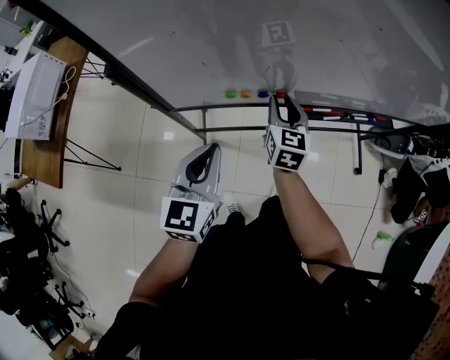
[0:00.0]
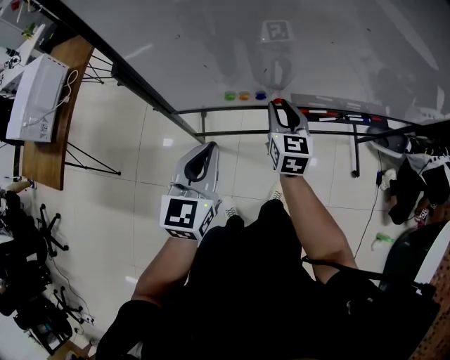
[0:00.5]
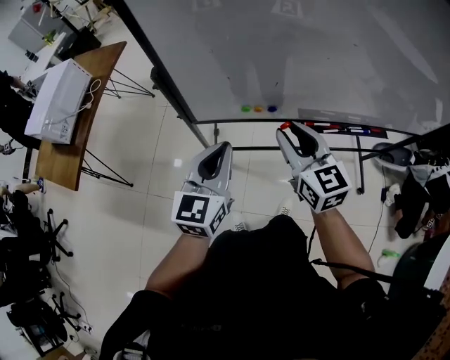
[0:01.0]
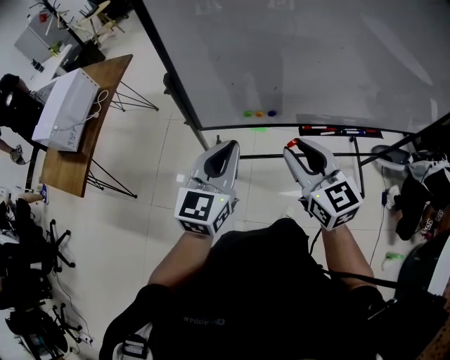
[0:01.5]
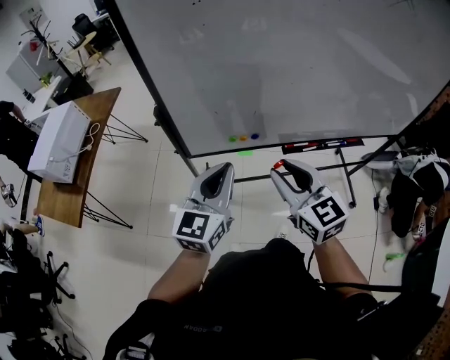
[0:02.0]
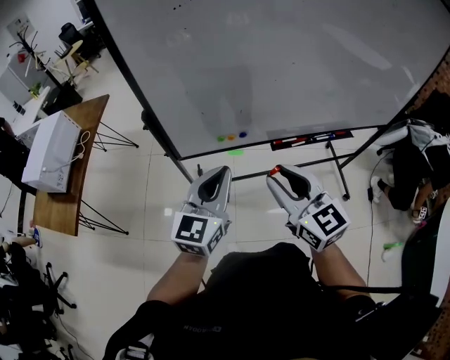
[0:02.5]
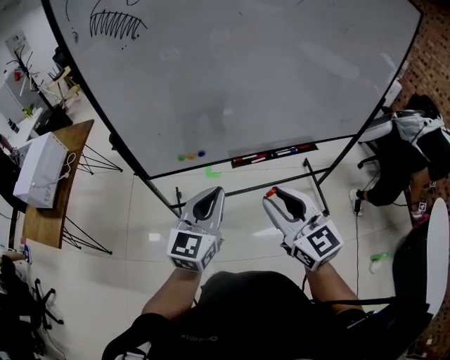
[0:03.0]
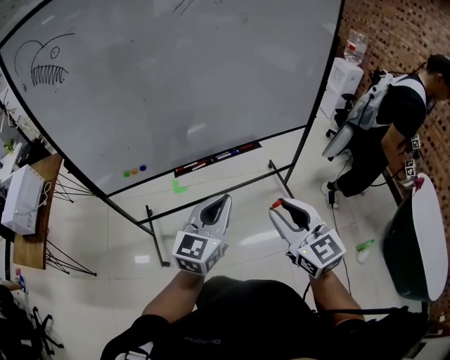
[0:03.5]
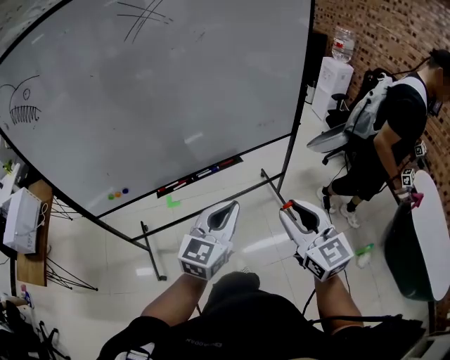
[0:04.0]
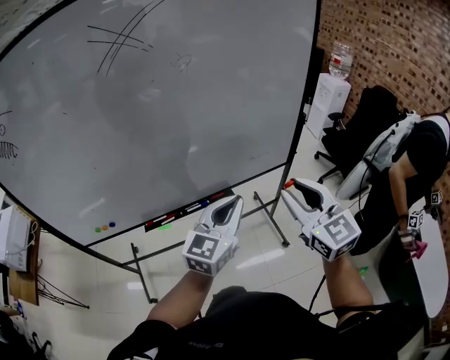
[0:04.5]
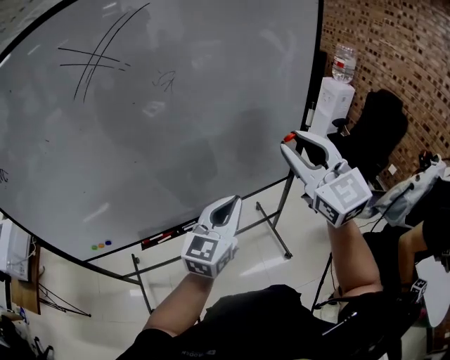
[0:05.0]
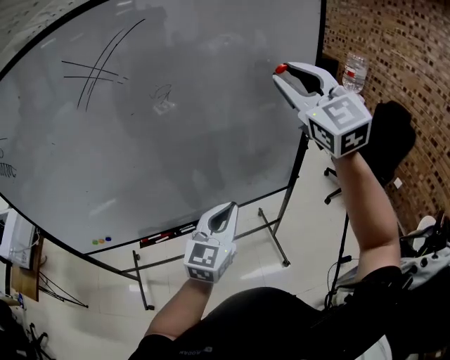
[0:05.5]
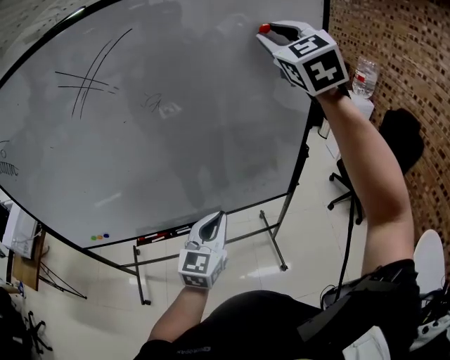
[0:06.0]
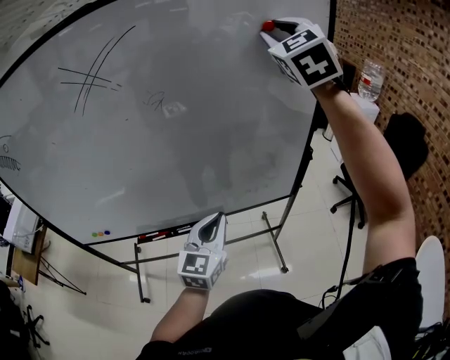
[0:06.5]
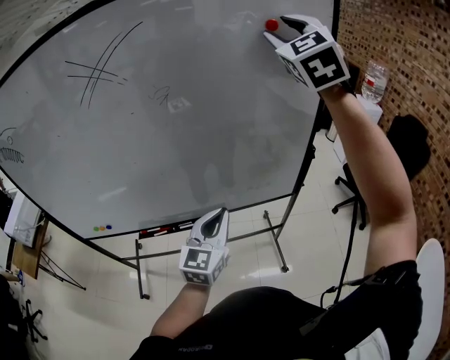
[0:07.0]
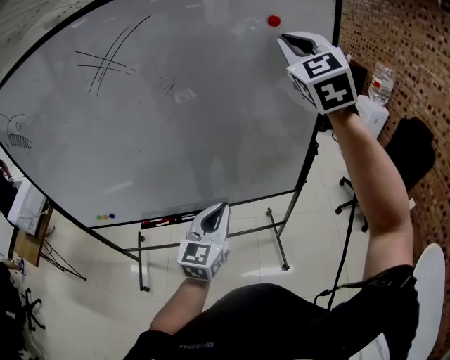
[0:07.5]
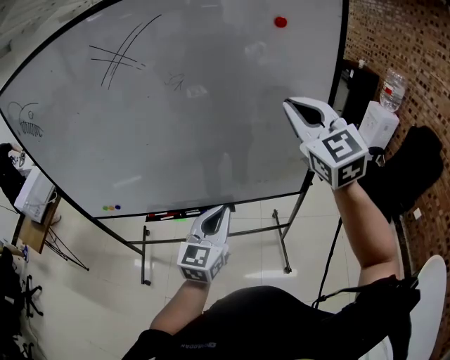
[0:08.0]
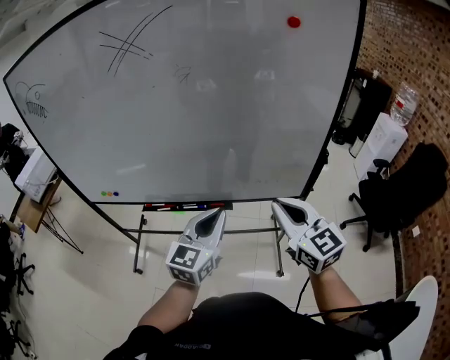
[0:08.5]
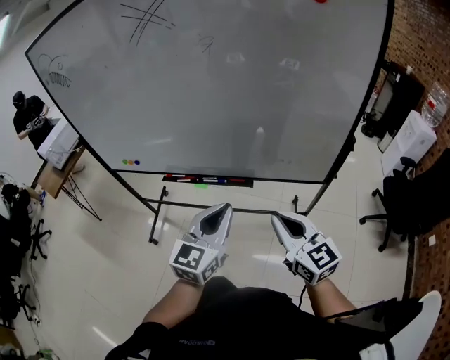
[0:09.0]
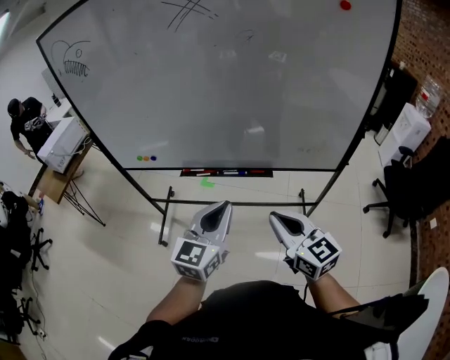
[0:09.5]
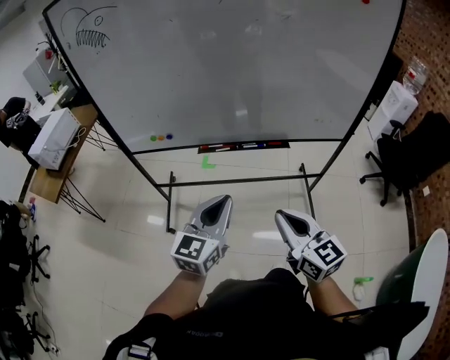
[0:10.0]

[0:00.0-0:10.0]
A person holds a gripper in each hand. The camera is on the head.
0.0 to 2.0 s: The left gripper is displaced upward by about 15 cm. The right gripper is displaced backward and upward by some 30 cm, and changes its angle by roughly 30 degrees.
2.0 to 4.0 s: The two grippers travel together, to the right, about 50 cm. The right gripper turns by approximately 20 degrees. The left gripper turns by roughly 20 degrees.
4.0 to 6.0 s: The right gripper moves forward and upward, about 60 cm, and turns by some 40 degrees; the left gripper is displaced forward by approximately 25 cm.
6.0 to 8.0 s: The right gripper heads downward and backward, covering roughly 20 cm, turns by approximately 20 degrees, and closes up.
8.0 to 10.0 s: The right gripper shifts roughly 50 cm to the left, backward and downward, and swivels some 40 degrees. The left gripper moves to the left and backward, about 35 cm.

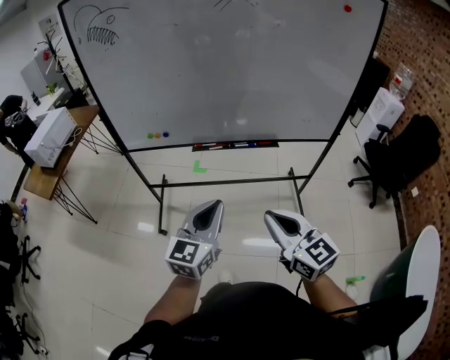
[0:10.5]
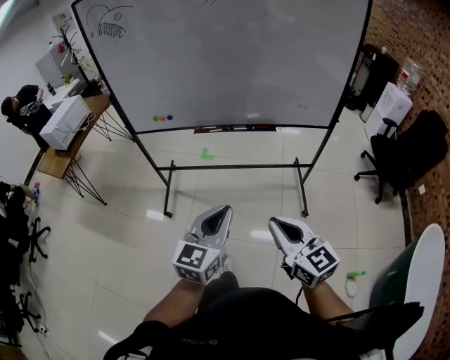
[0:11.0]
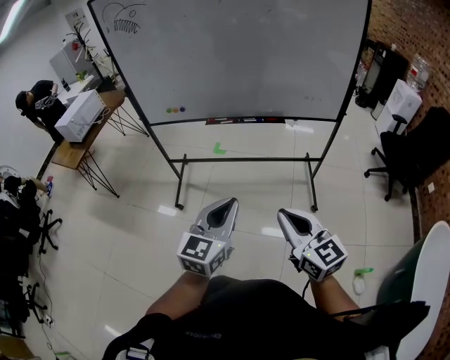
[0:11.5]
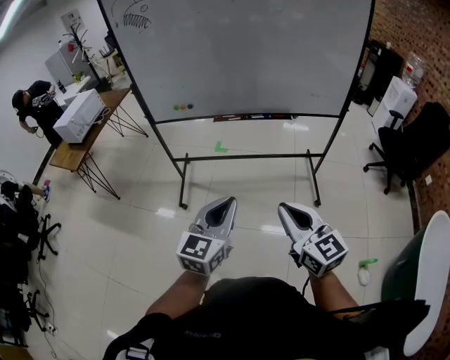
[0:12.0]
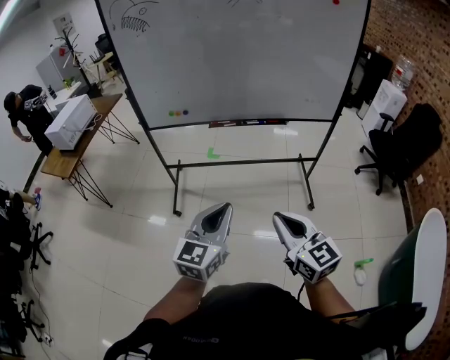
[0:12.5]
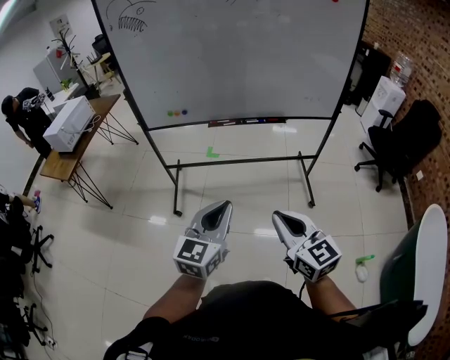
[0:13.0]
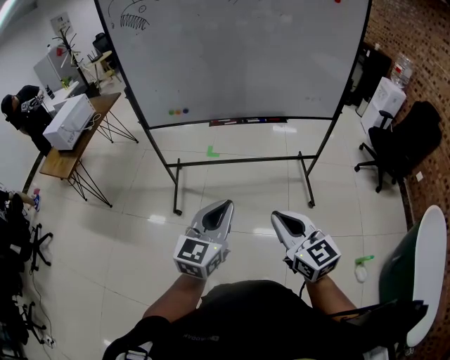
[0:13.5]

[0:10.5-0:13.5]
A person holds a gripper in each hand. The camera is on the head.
10.5 to 12.0 s: The two grippers go about 15 cm backward.
12.0 to 13.5 s: The grippers move only a little.

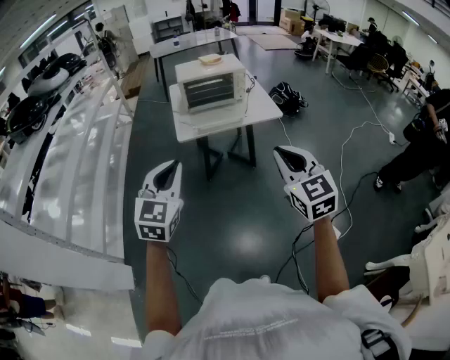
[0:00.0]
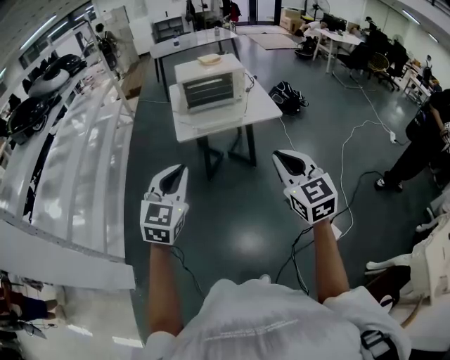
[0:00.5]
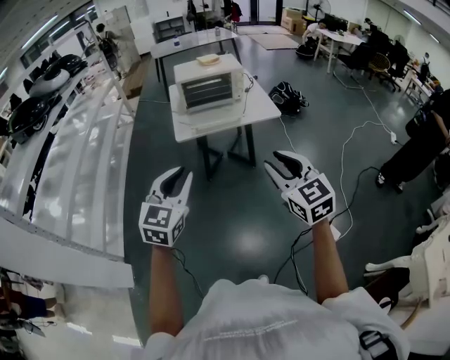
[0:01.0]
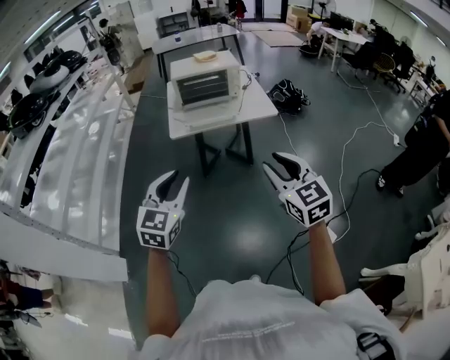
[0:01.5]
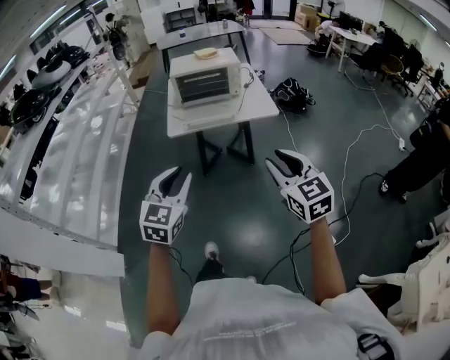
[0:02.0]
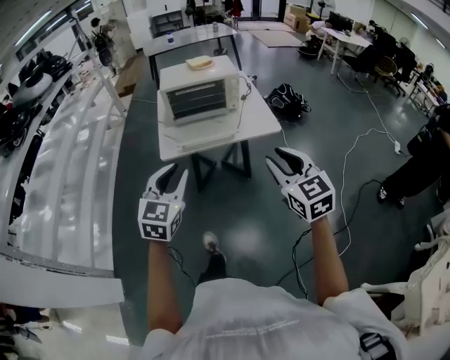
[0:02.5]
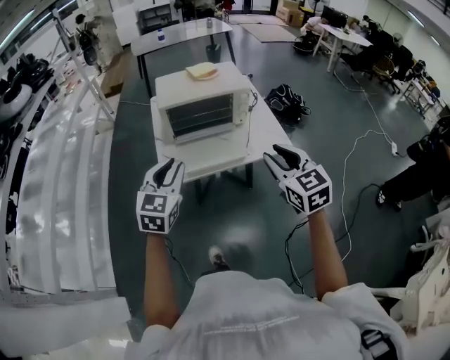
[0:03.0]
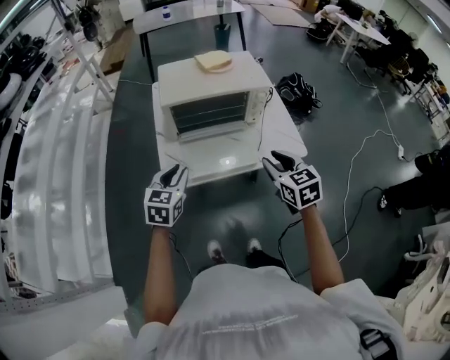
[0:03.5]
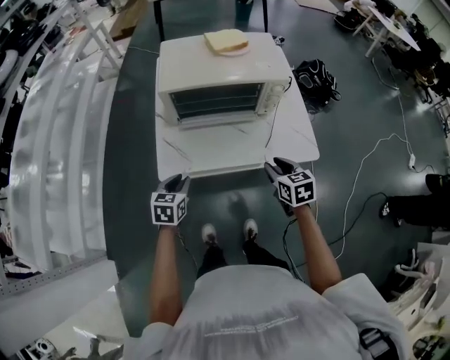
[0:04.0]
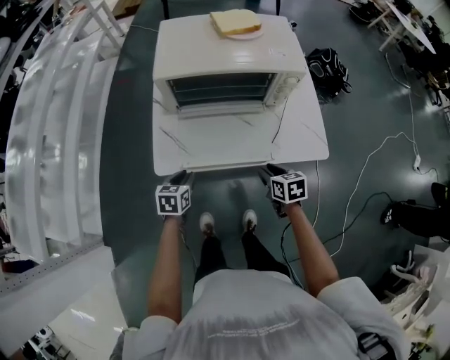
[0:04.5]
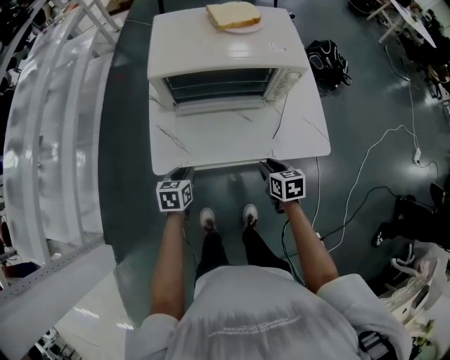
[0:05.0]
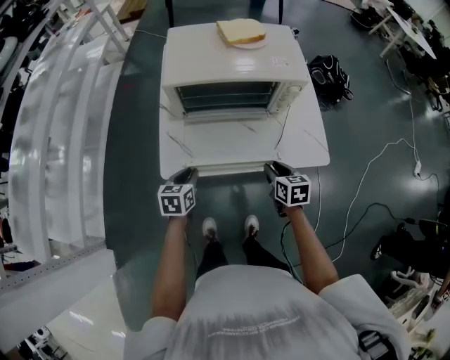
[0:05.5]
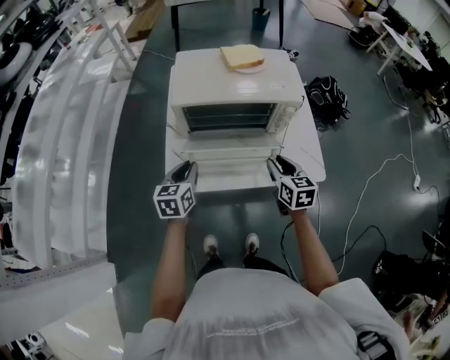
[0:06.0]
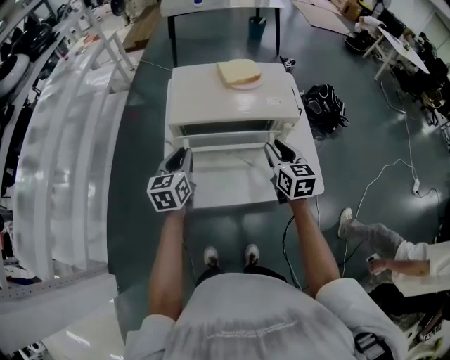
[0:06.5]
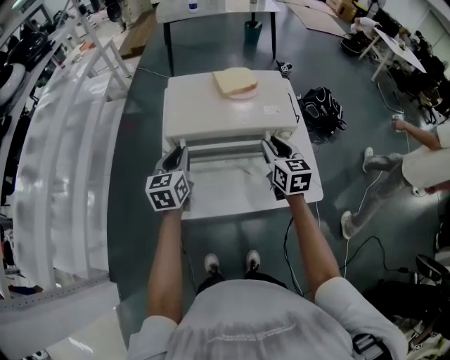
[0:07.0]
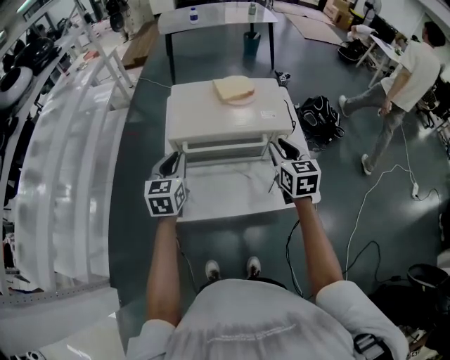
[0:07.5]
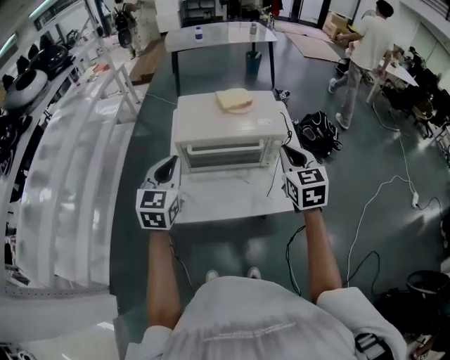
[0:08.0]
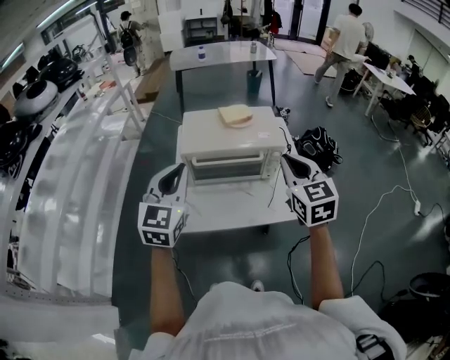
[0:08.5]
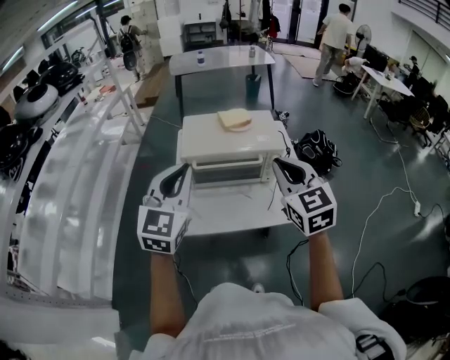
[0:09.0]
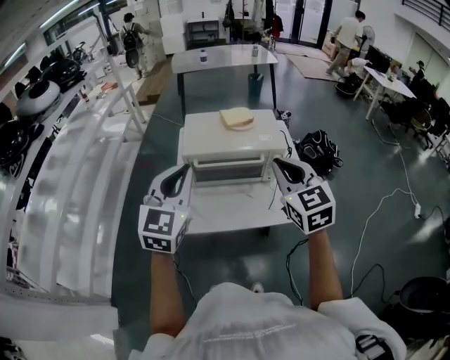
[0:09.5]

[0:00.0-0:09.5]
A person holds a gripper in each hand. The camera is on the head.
0.0 to 2.0 s: Both grippers travel together to the right and downward, some 10 cm. The right gripper opens its fingers. The left gripper opens its fingers.
2.0 to 4.0 s: The pair of grippers is taken forward, some 50 cm. The two grippers go some 25 cm downward. The left gripper changes its angle by about 40 degrees, while the right gripper changes its angle by about 30 degrees.
4.0 to 5.5 s: The right gripper goes some 10 cm downward.
5.5 to 7.5 s: The two grippers go some 25 cm upward and forward. The right gripper changes its angle by some 30 degrees; the left gripper swivels some 30 degrees.
7.5 to 9.5 s: The two grippers go approximately 25 cm upward and backward. The right gripper turns by roughly 20 degrees, and closes. Meanwhile the left gripper turns by roughly 30 degrees.

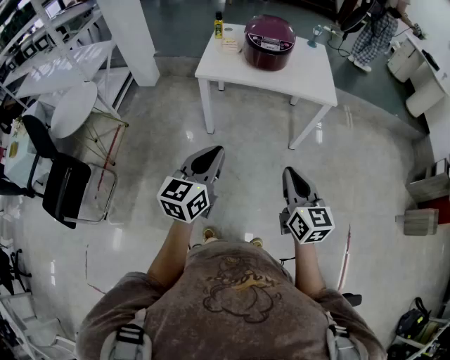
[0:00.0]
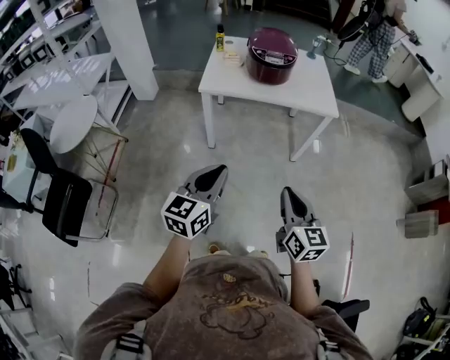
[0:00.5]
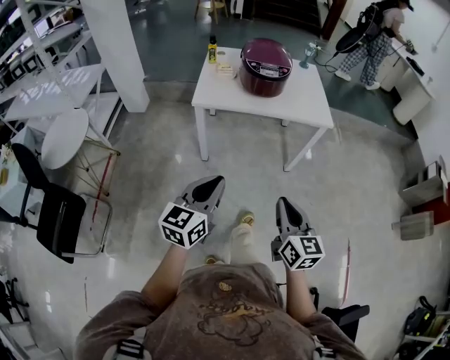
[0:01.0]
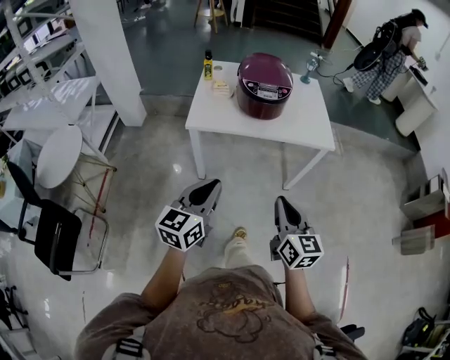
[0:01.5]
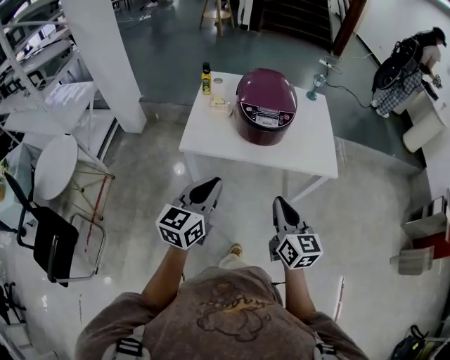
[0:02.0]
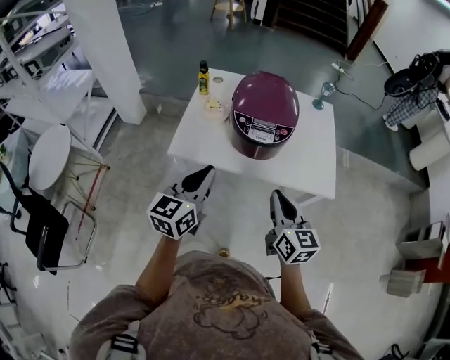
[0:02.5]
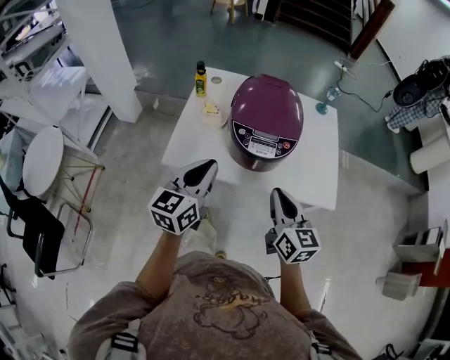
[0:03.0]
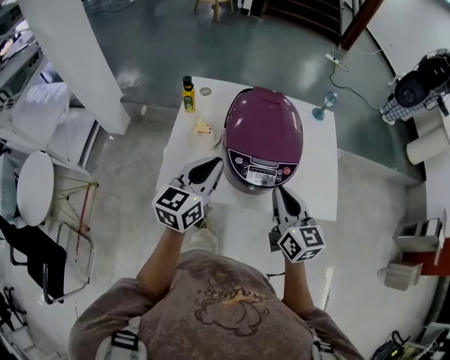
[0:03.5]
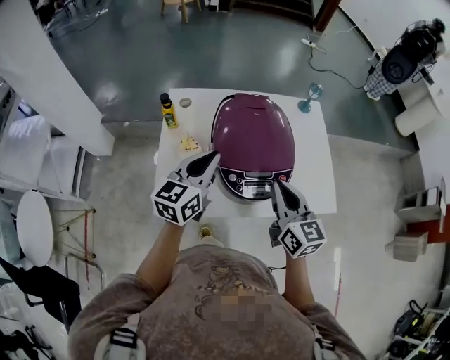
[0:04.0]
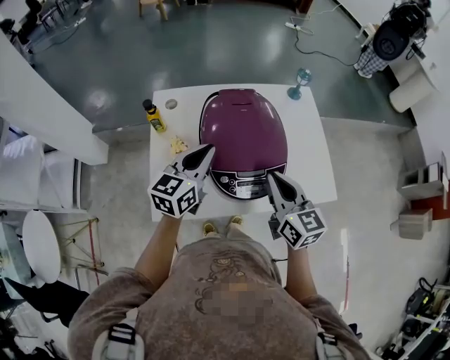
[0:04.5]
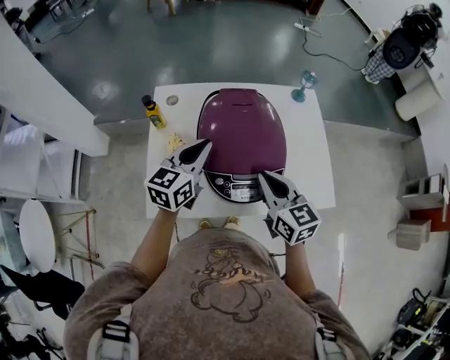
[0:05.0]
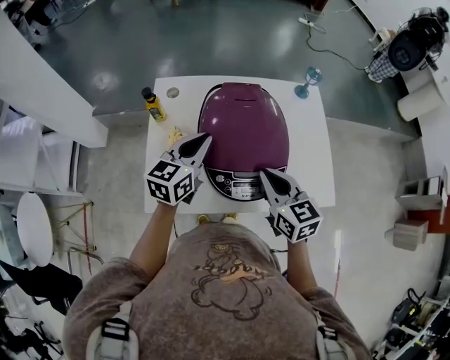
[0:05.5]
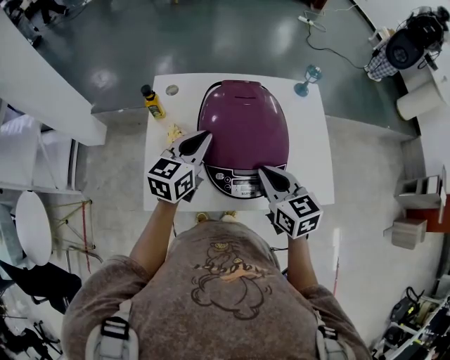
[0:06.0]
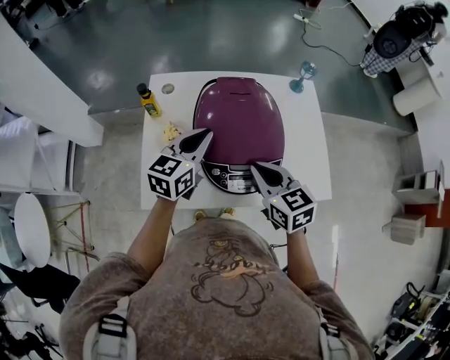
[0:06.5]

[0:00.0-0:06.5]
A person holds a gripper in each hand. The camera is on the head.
0.0 to 2.0 s: Both grippers travel together forward, some 30 cm.
2.0 to 4.5 s: Both grippers travel together forward, about 40 cm.
4.5 to 6.5 s: The right gripper shifts by about 5 cm, and changes its angle by roughly 20 degrees.
